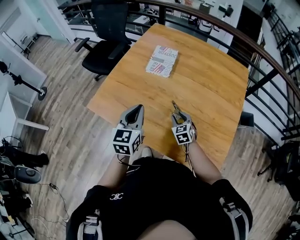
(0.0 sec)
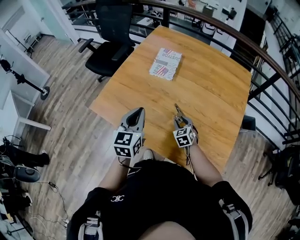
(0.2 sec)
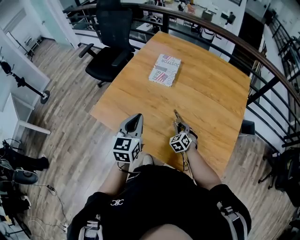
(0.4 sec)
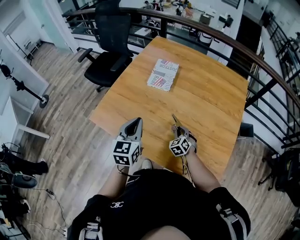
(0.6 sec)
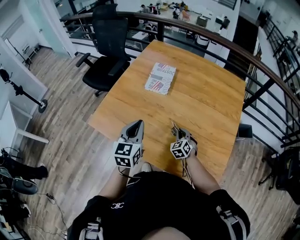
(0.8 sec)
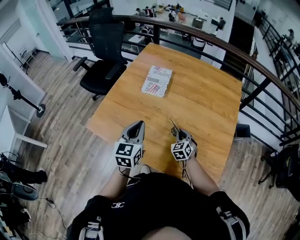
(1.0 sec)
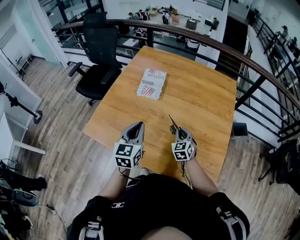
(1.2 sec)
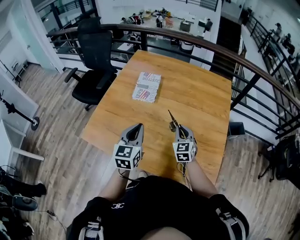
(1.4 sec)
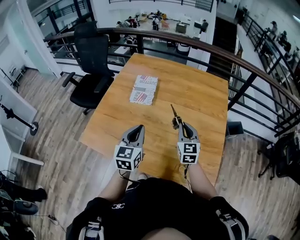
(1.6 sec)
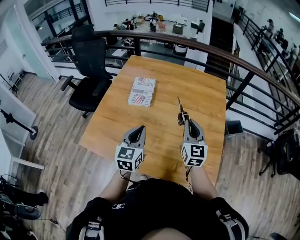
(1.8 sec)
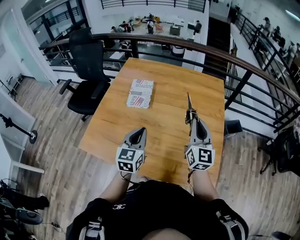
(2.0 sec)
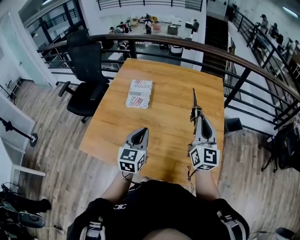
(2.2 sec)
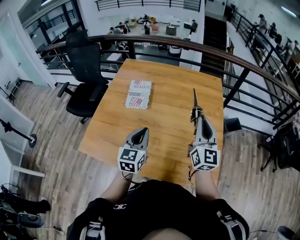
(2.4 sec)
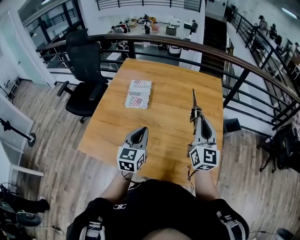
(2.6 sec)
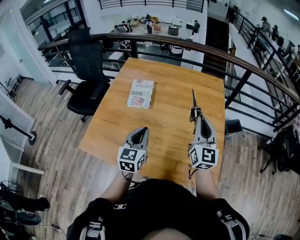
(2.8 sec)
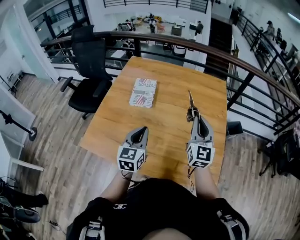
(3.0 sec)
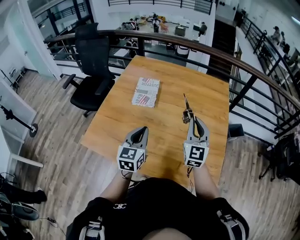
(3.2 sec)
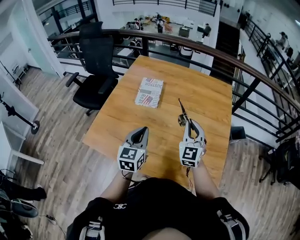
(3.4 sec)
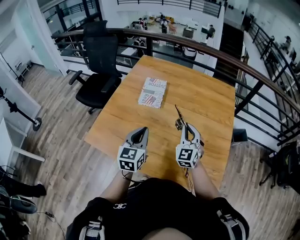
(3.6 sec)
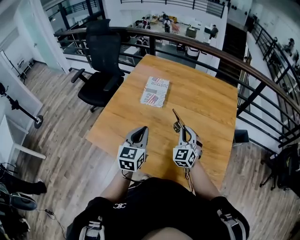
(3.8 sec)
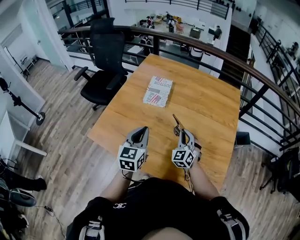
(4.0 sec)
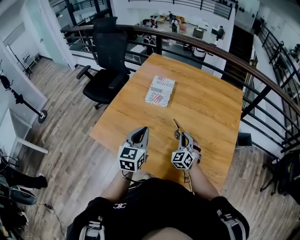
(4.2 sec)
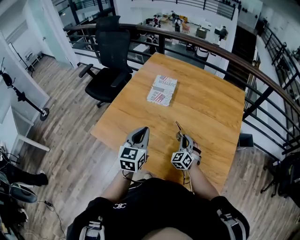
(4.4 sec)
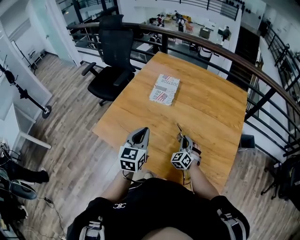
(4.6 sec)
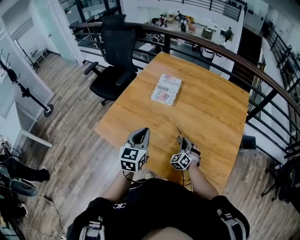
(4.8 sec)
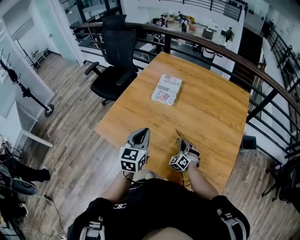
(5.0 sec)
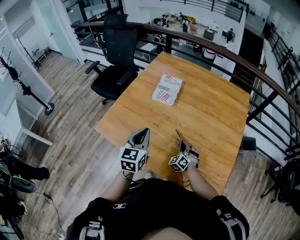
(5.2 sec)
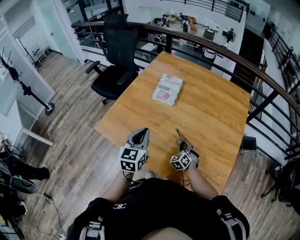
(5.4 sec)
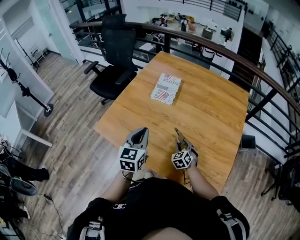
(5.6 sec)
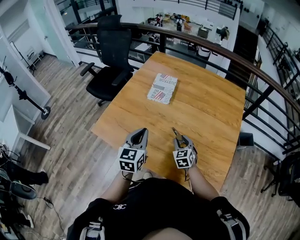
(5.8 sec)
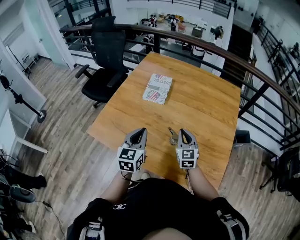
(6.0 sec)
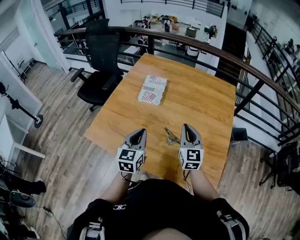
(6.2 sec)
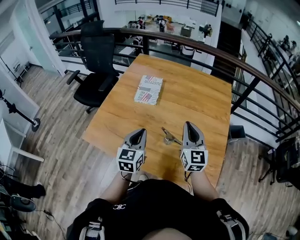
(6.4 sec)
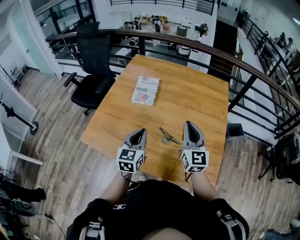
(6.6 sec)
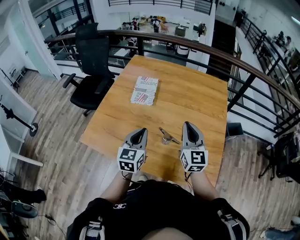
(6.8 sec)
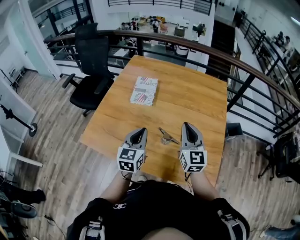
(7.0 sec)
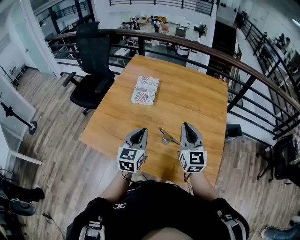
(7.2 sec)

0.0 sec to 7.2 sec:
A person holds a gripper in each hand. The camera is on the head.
0.0 sec to 1.4 sec: The right gripper moves upward and to the right, approximately 15 cm, changes its angle by some 20 degrees, and closes up. Meanwhile the left gripper shifts by roughly 5 cm.
1.4 sec to 2.8 sec: The right gripper is displaced upward and to the right by about 20 cm, and rotates roughly 40 degrees.
2.8 sec to 4.4 sec: The right gripper goes about 30 cm downward and to the left, and rotates around the line of its fingers by some 40 degrees, counterclockwise from behind, while the left gripper heads to the left, covering roughly 5 cm.
4.4 sec to 5.8 sec: The right gripper moves approximately 10 cm downward and comes back, changes its angle by approximately 30 degrees, and opens its fingers.
5.8 sec to 7.2 sec: The right gripper is displaced upward by some 25 cm, angles its fingers upward, by roughly 30 degrees, and closes. The left gripper travels to the right by about 5 cm.

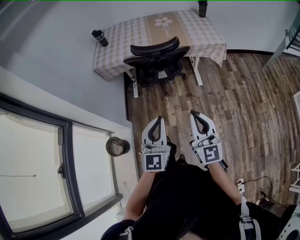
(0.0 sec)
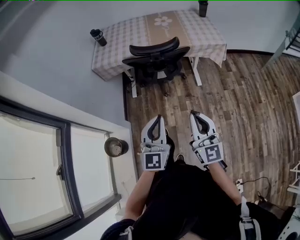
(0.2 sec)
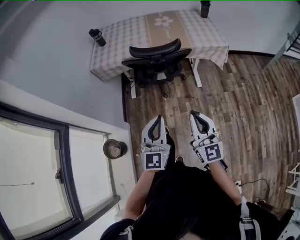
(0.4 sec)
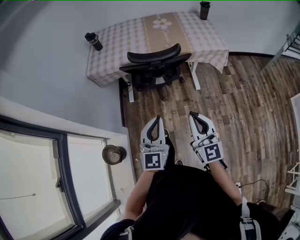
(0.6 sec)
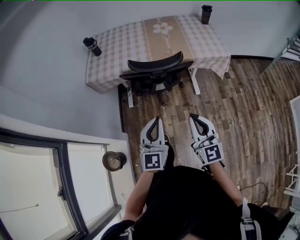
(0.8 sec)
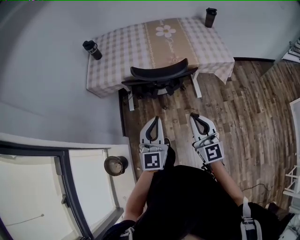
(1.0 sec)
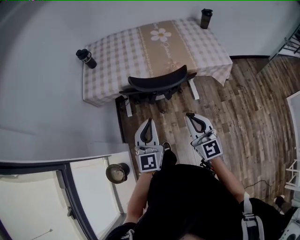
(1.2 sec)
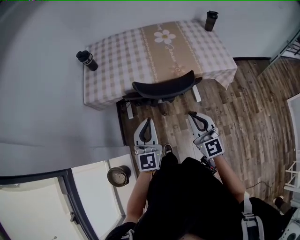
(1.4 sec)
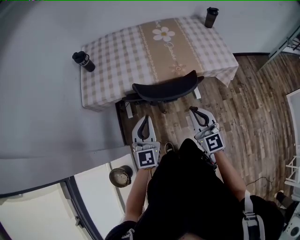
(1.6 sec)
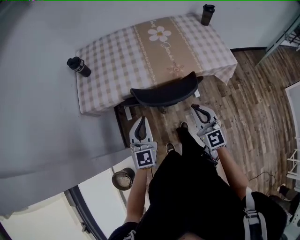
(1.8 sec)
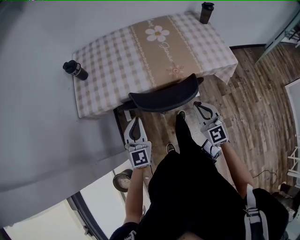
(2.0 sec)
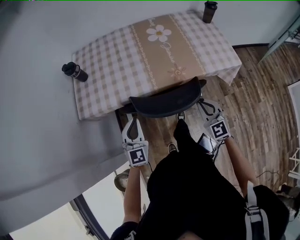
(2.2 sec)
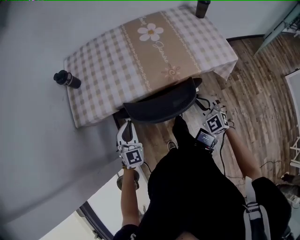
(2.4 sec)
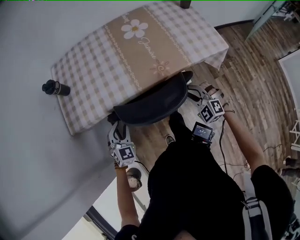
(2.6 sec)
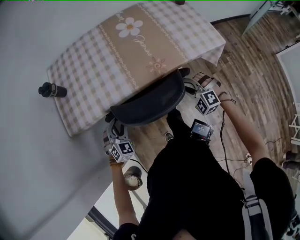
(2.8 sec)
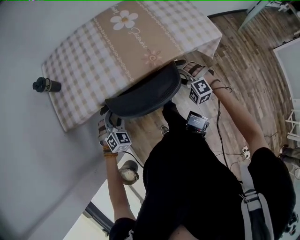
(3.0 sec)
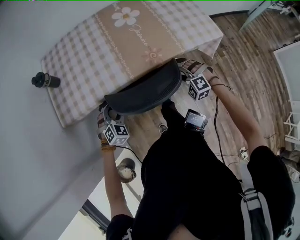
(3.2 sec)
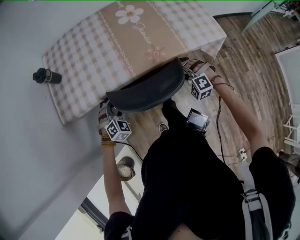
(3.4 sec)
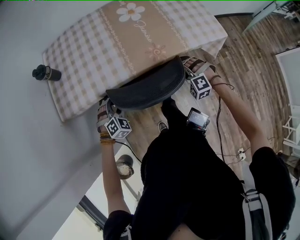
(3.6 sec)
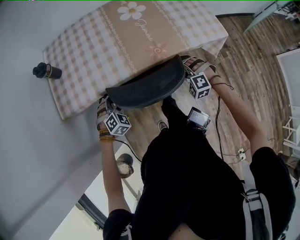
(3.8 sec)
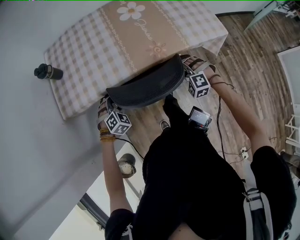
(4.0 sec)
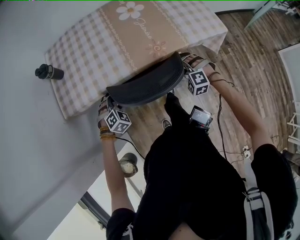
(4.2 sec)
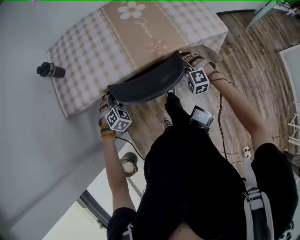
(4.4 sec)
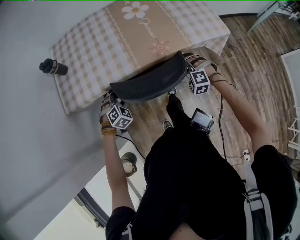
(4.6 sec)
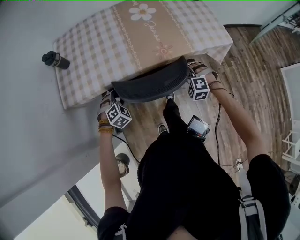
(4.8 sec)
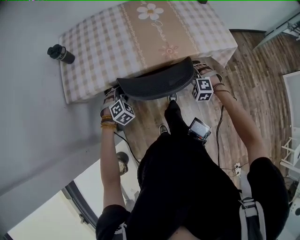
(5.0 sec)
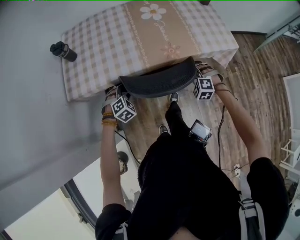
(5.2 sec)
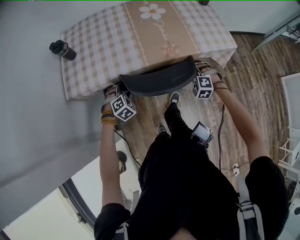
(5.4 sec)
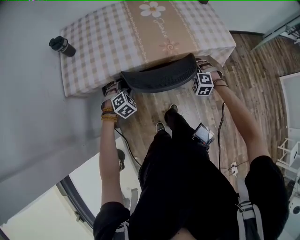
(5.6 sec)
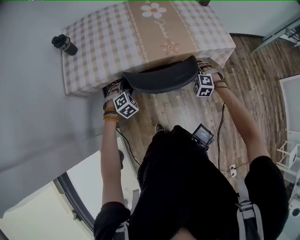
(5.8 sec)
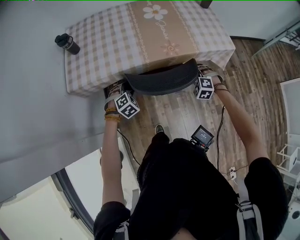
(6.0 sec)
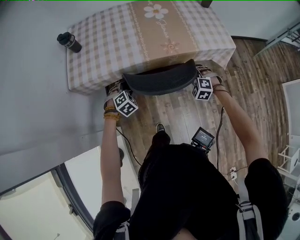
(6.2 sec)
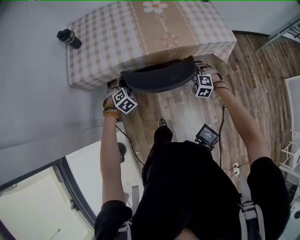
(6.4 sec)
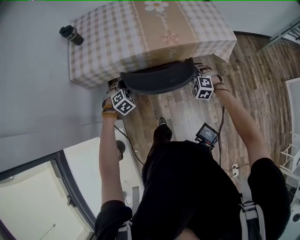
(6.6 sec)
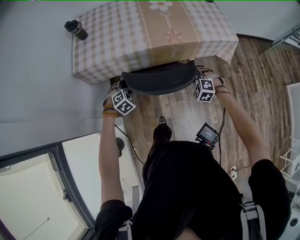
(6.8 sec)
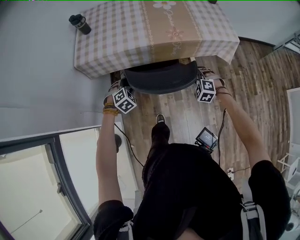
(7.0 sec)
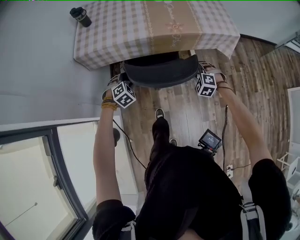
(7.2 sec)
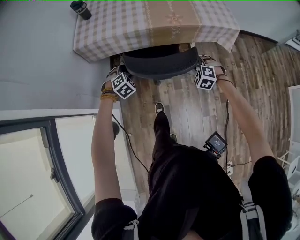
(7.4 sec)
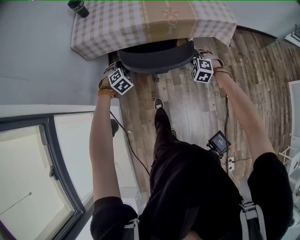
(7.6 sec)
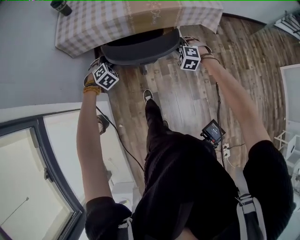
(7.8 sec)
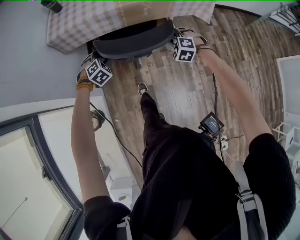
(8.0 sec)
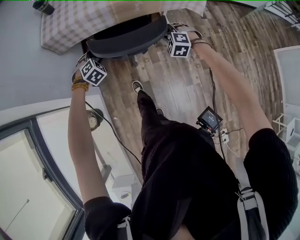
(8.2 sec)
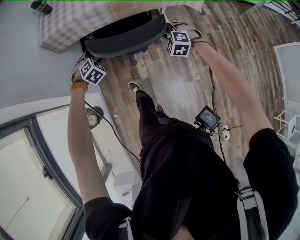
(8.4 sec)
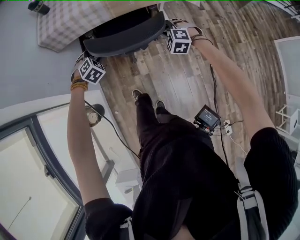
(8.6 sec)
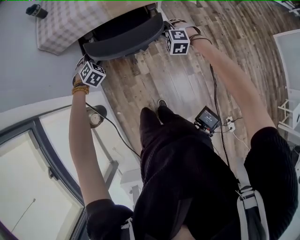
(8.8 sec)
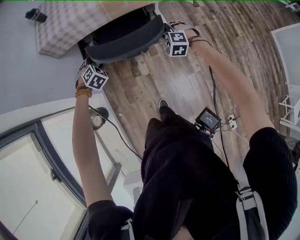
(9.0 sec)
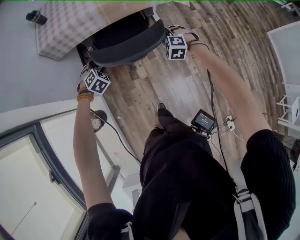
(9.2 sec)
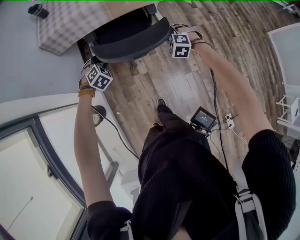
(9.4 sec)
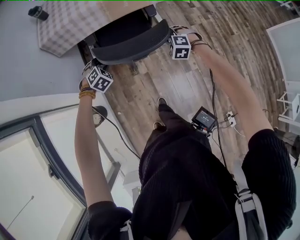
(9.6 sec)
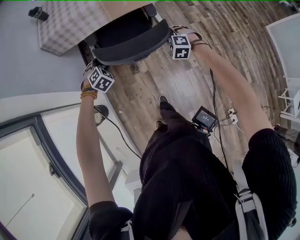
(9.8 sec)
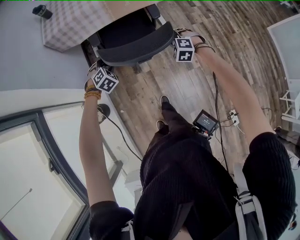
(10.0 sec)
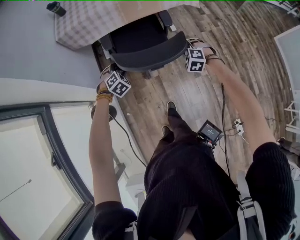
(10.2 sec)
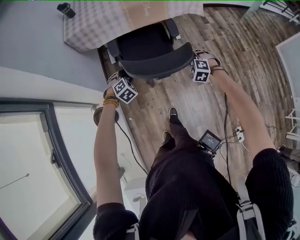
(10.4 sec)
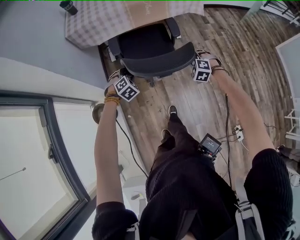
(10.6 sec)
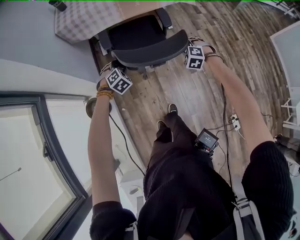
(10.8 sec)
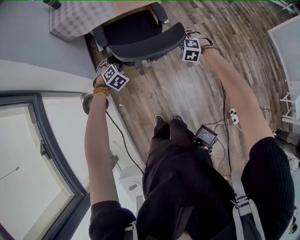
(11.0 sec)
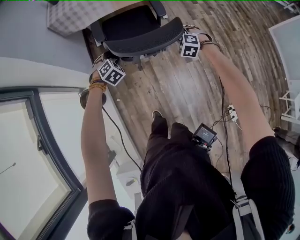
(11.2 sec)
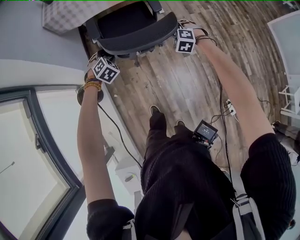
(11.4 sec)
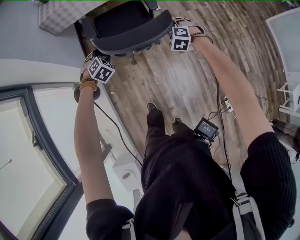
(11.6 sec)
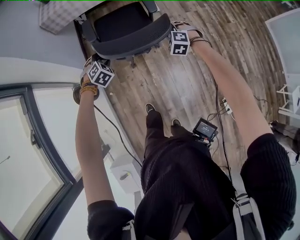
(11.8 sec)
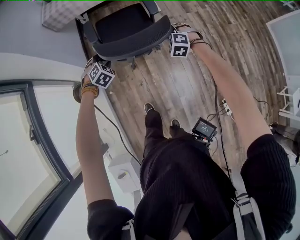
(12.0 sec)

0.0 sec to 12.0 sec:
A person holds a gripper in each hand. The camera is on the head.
0.0 sec to 1.6 sec: Both grippers travel together forward, approximately 40 cm.
1.6 sec to 3.0 sec: The left gripper moves downward and forward, some 25 cm, angles its fingers downward, by about 40 degrees, and opens up; the right gripper travels downward, forward and to the right by some 30 cm, points its fingers approximately 40 degrees further downward, and opens its fingers.
3.0 sec to 6.0 sec: The grippers make only small movements.
6.0 sec to 7.6 sec: Both grippers travel together backward, about 15 cm.
7.6 sec to 9.0 sec: Both grippers move backward, about 10 cm.
9.0 sec to 10.4 sec: The two grippers go roughly 20 cm backward.
10.4 sec to 12.0 sec: The grippers both shift backward by approximately 10 cm.

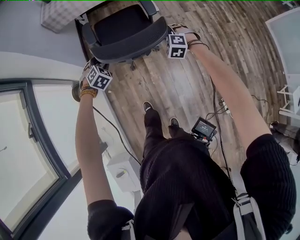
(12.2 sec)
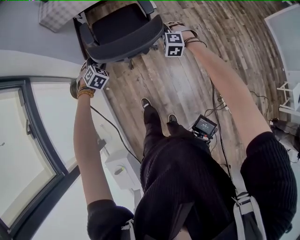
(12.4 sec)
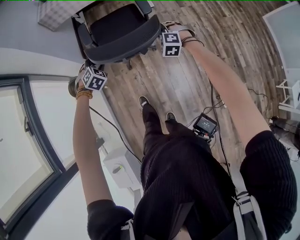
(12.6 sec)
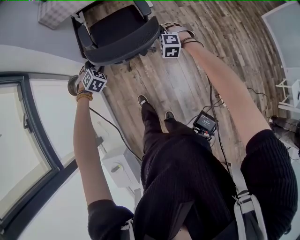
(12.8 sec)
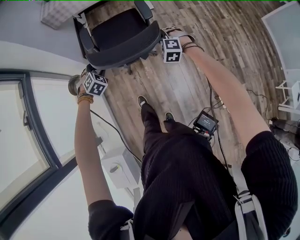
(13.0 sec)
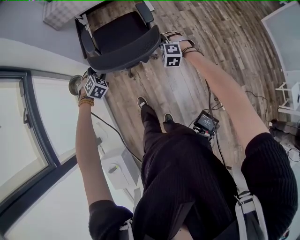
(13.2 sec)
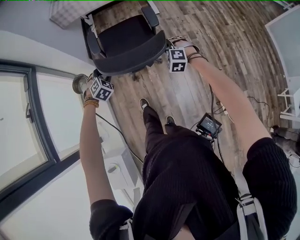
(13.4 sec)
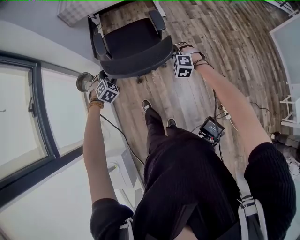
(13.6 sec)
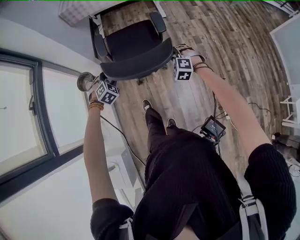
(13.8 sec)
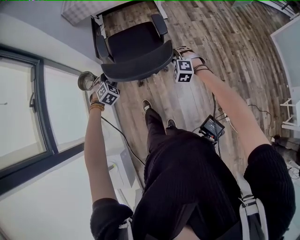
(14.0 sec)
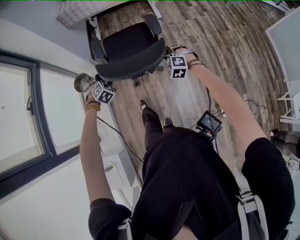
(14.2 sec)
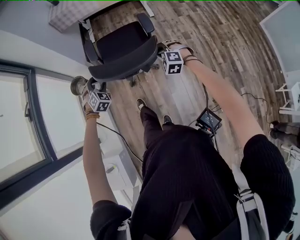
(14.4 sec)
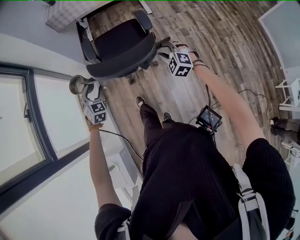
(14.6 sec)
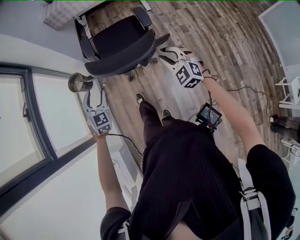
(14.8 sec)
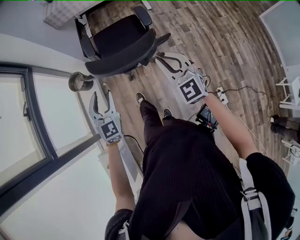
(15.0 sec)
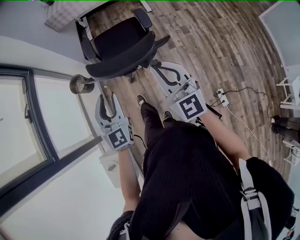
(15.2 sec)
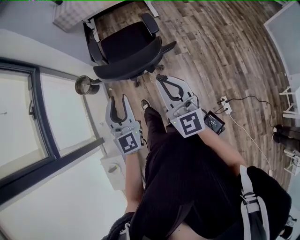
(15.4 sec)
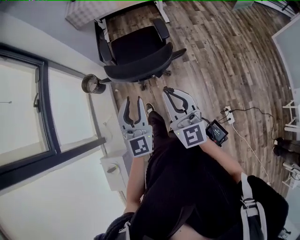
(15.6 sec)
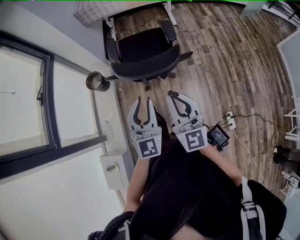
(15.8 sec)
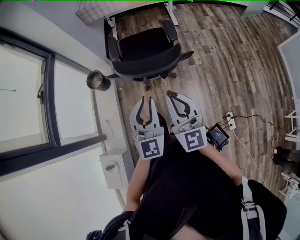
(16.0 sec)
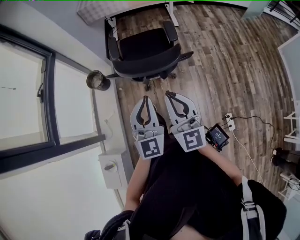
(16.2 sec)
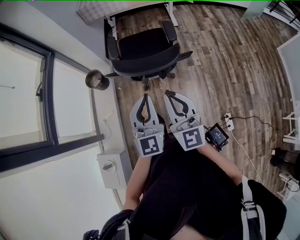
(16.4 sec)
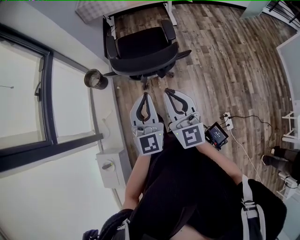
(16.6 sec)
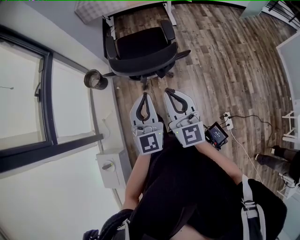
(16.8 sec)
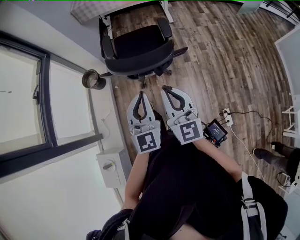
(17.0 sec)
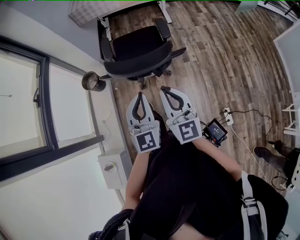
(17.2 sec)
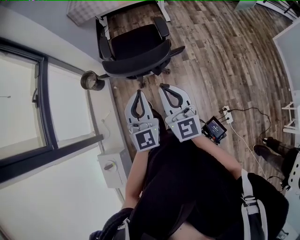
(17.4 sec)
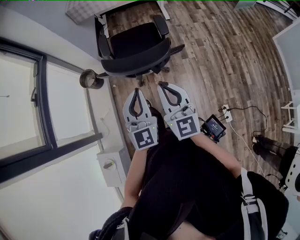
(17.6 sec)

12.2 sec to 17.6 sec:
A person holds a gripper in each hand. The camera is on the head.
12.2 sec to 13.6 sec: Both grippers move backward, roughly 20 cm.
13.6 sec to 15.0 sec: The left gripper is displaced backward and upward by approximately 20 cm, and tips its fingers upward by some 40 degrees; the right gripper is displaced upward and backward by approximately 25 cm, tilts its fingers approximately 40 degrees upward, and closes up.
15.0 sec to 16.2 sec: The right gripper travels backward, to the left and upward by about 15 cm, and rotates about 20 degrees; the left gripper is displaced upward, to the right and backward by some 15 cm, rotates about 20 degrees, and closes its fingers.
16.2 sec to 17.6 sec: There are only small adjustments of the grippers.
